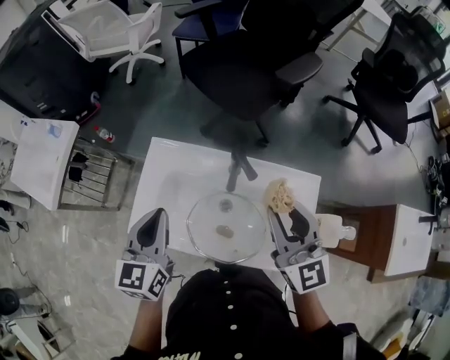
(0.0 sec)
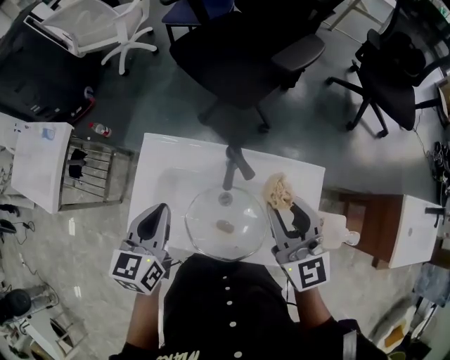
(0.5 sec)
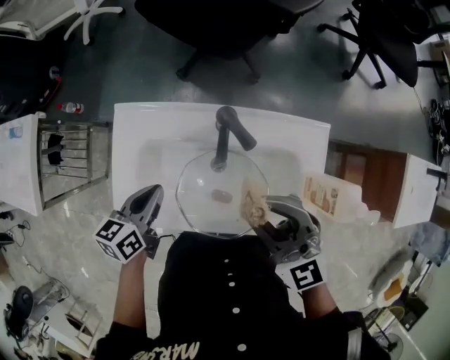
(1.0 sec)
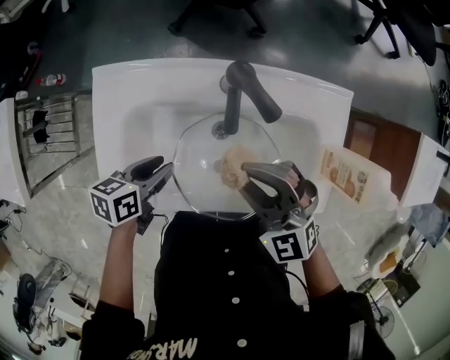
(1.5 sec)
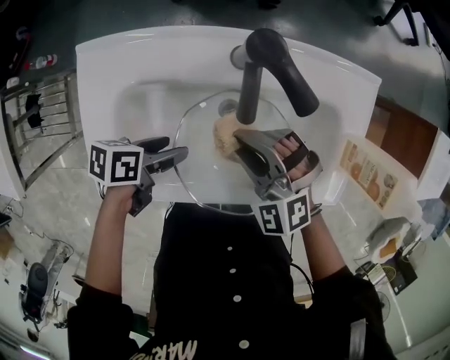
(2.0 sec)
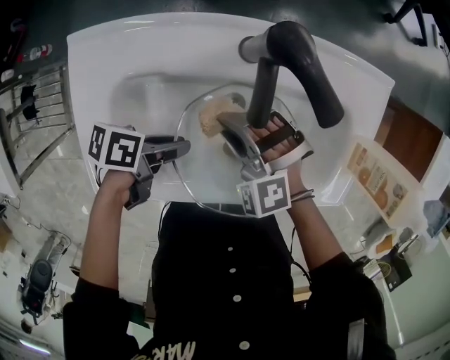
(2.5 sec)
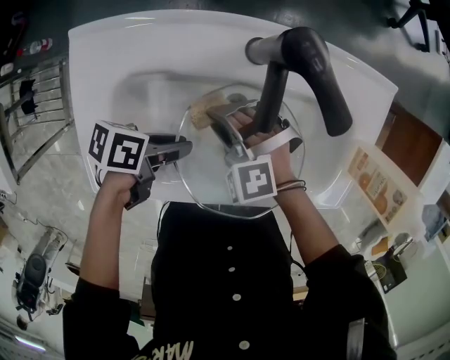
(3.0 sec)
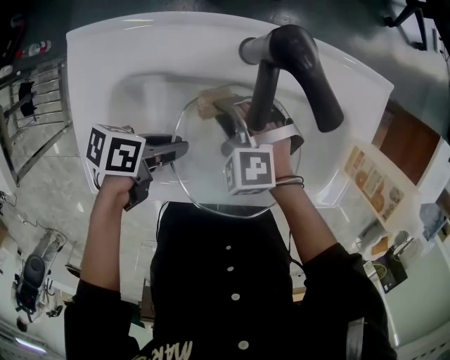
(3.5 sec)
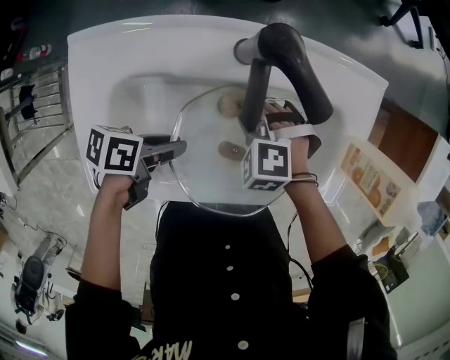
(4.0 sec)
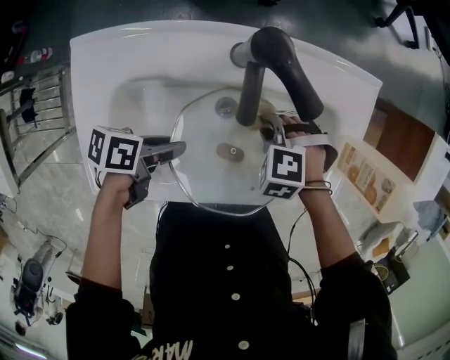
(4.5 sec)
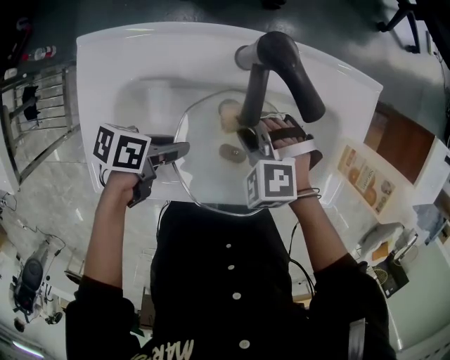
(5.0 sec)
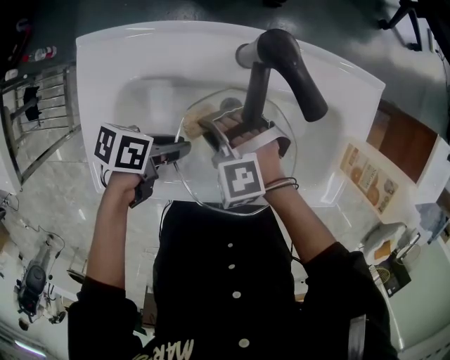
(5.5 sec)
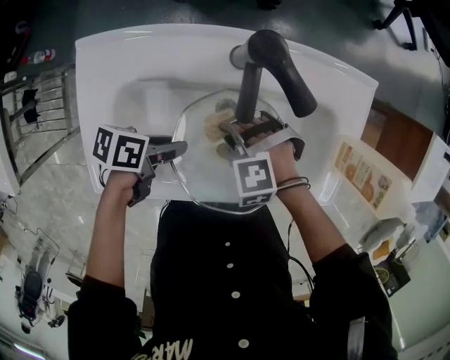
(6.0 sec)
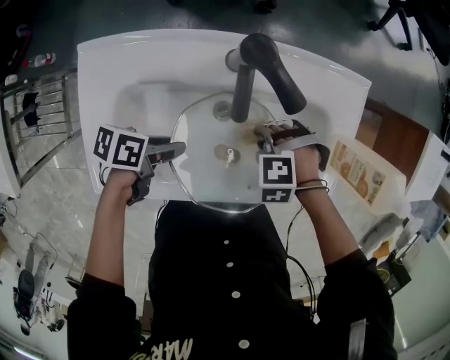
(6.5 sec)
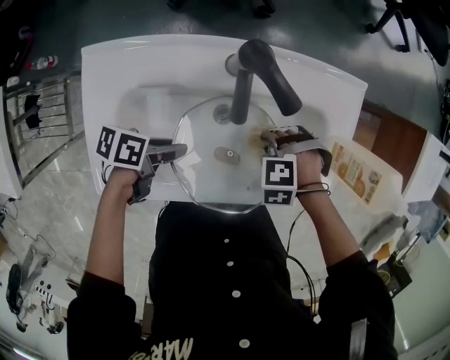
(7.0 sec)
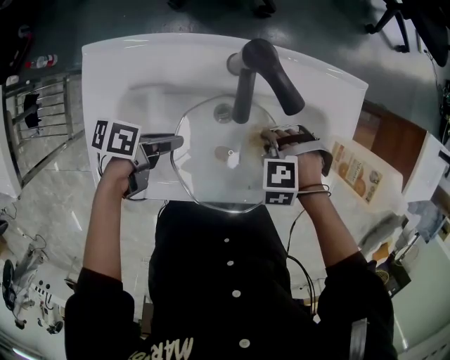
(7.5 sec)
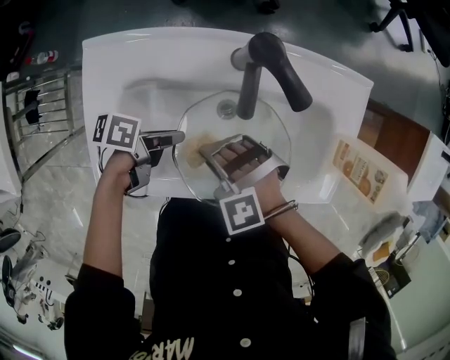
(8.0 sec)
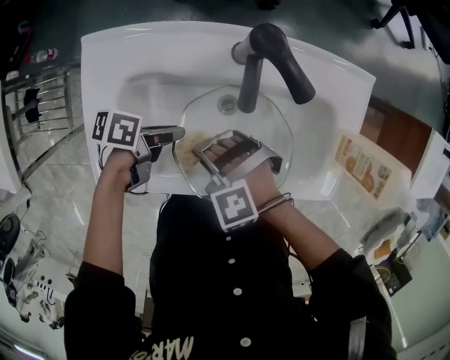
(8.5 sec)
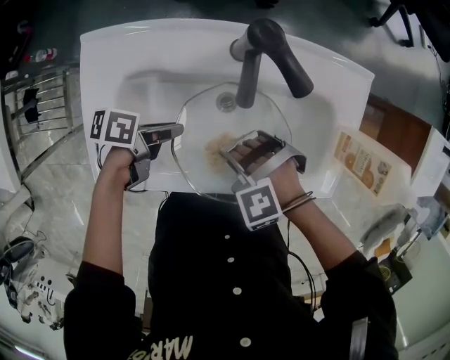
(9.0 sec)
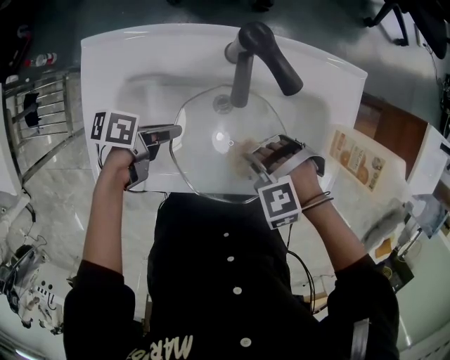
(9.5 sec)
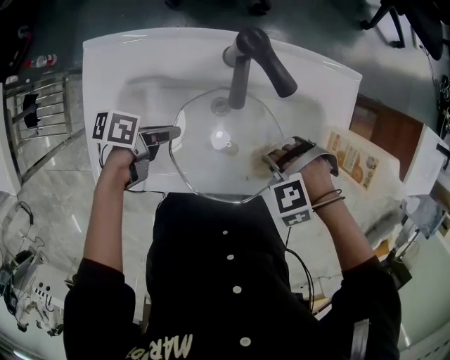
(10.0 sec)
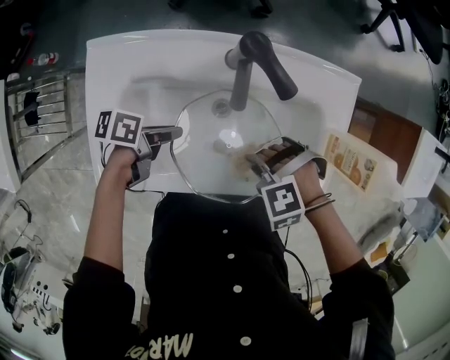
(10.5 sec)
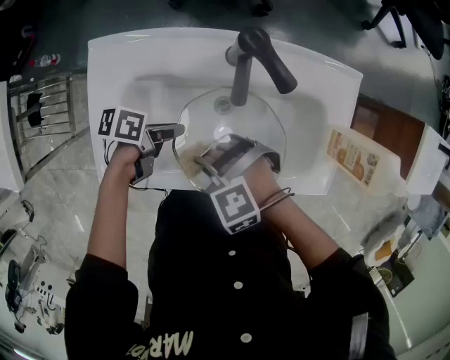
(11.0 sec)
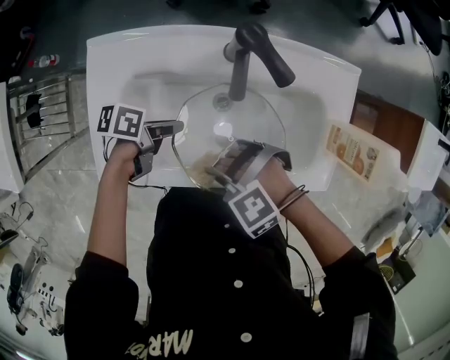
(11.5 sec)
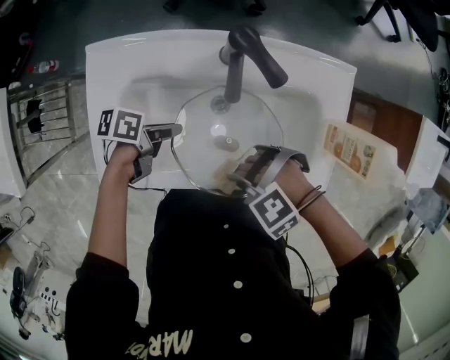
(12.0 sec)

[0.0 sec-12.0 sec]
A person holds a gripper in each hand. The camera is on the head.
0.0 sec to 2.0 sec: The two grippers go about 30 cm downward. The right gripper points its fingers some 40 degrees further downward; the left gripper swivels approximately 80 degrees, and opens up.
2.0 sec to 4.0 sec: The right gripper moves downward, some 10 cm, and changes its angle by roughly 30 degrees; the left gripper closes its fingers.
6.0 sec to 8.0 sec: The right gripper changes place by some 10 cm.
8.0 sec to 10.0 sec: The right gripper ends up approximately 20 cm from where it was, and swivels roughly 40 degrees.
10.0 sec to 12.0 sec: The right gripper turns by roughly 20 degrees.

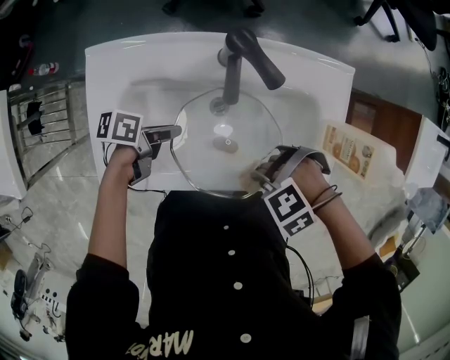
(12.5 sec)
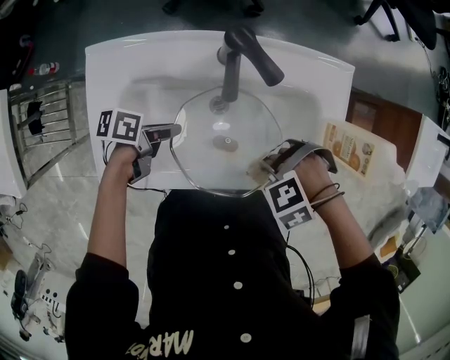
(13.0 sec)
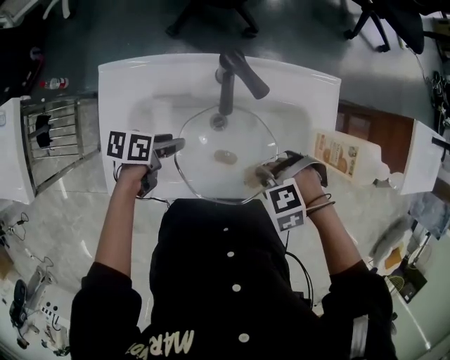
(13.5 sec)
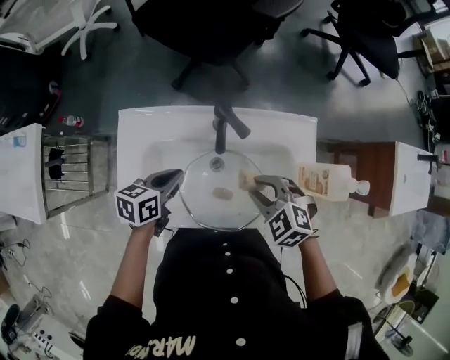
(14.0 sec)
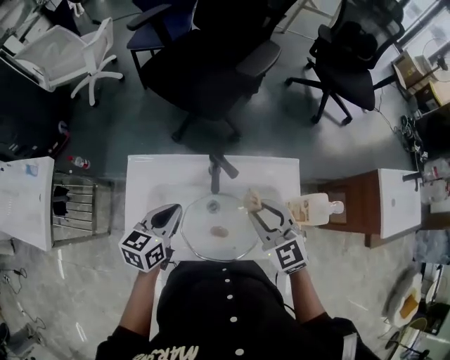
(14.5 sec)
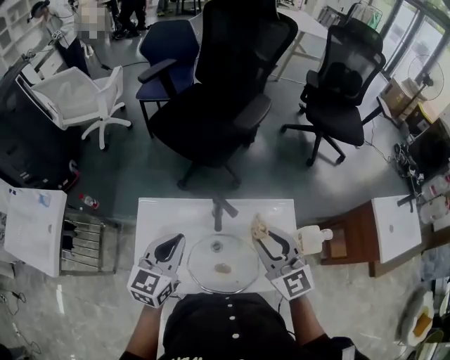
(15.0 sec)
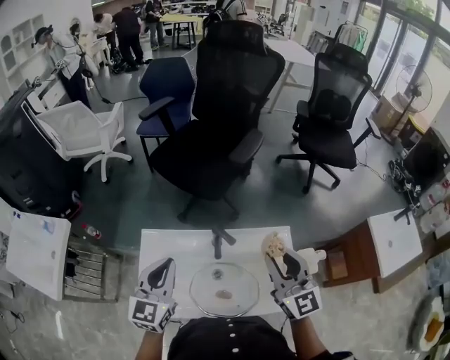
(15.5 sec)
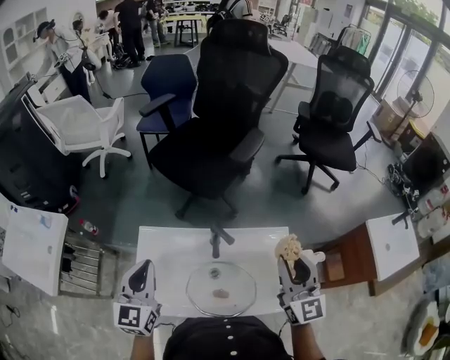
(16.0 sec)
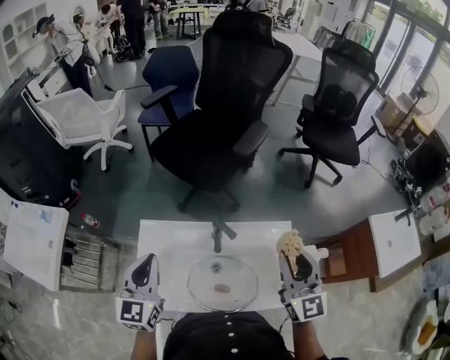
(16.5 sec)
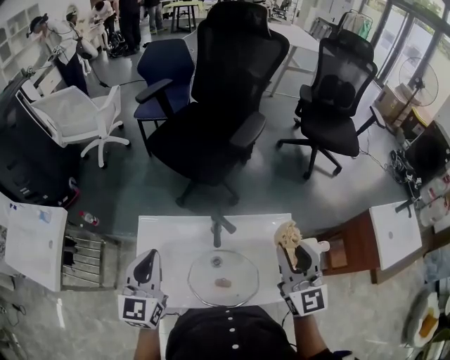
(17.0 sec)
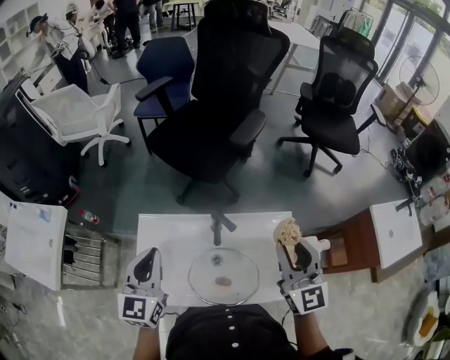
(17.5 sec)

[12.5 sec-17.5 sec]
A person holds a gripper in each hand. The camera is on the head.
12.5 sec to 15.0 sec: Both grippers move upward, about 35 cm. The left gripper rotates roughly 80 degrees, and opens, then closes again, while the right gripper tilts its fingers some 60 degrees upward.
15.0 sec to 17.5 sec: The left gripper moves to the left, roughly 5 cm. Meanwhile the right gripper moves to the right and upward, approximately 10 cm.

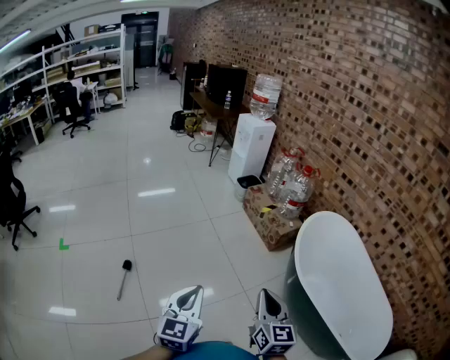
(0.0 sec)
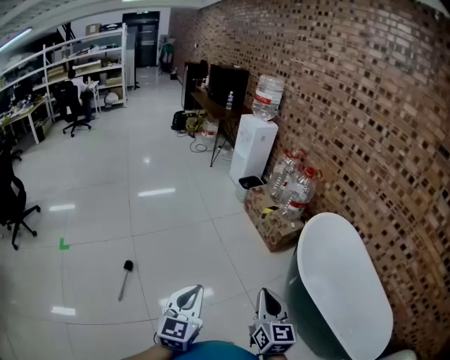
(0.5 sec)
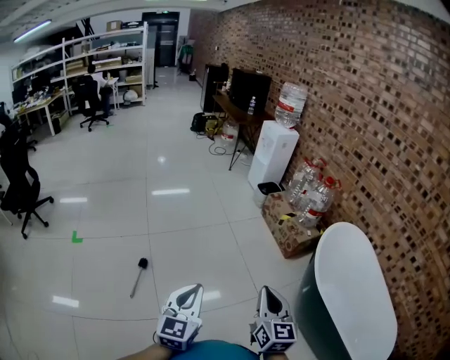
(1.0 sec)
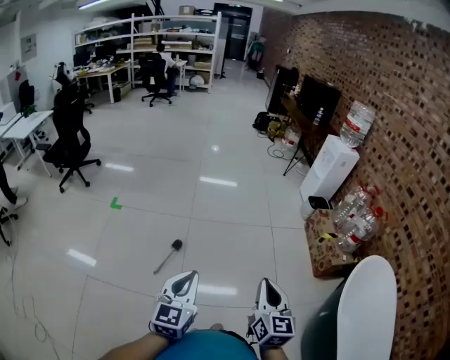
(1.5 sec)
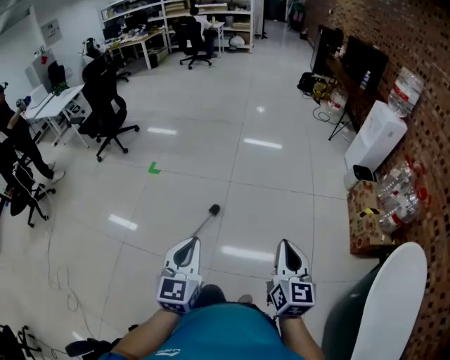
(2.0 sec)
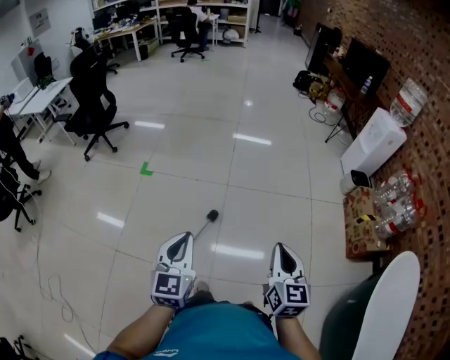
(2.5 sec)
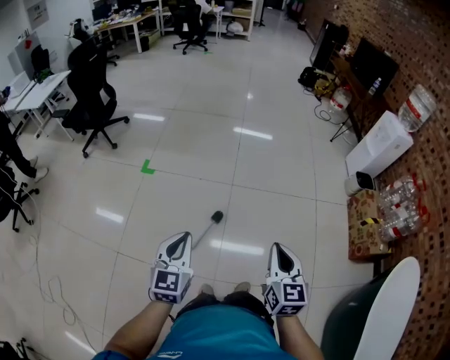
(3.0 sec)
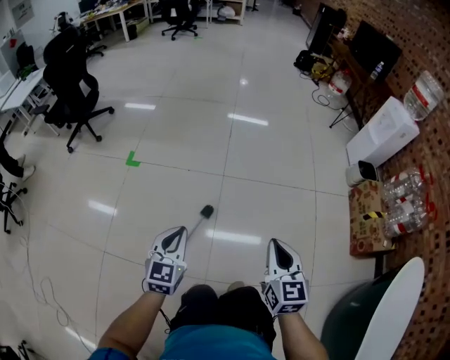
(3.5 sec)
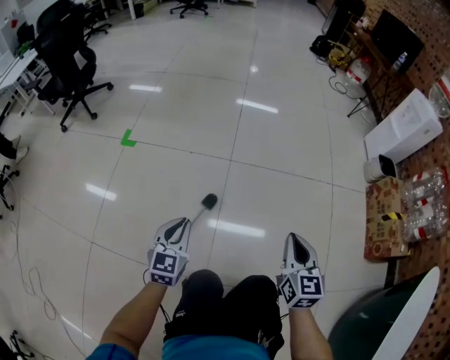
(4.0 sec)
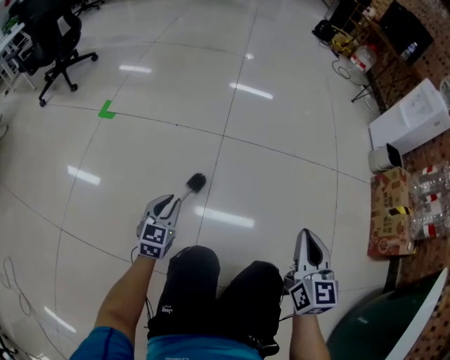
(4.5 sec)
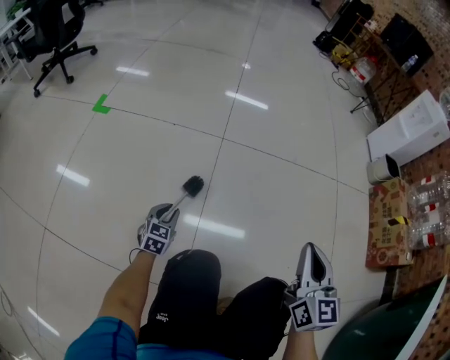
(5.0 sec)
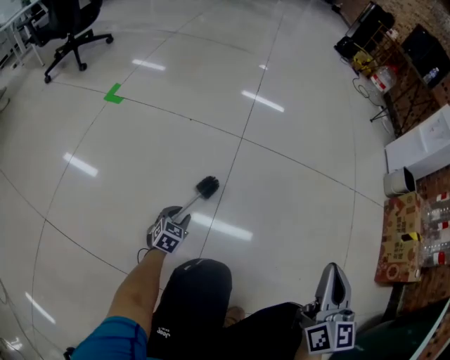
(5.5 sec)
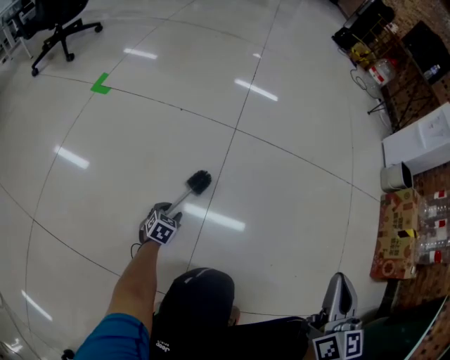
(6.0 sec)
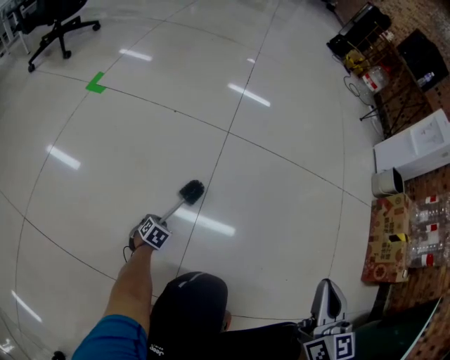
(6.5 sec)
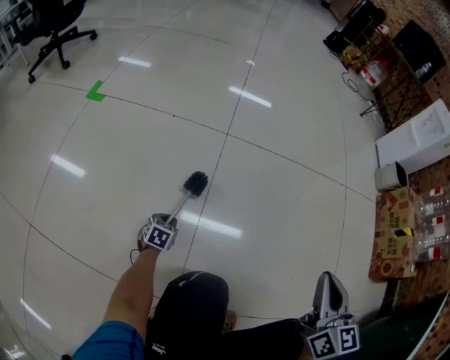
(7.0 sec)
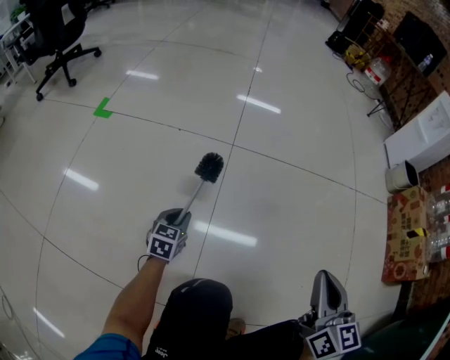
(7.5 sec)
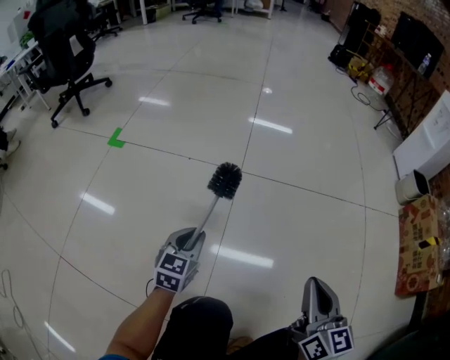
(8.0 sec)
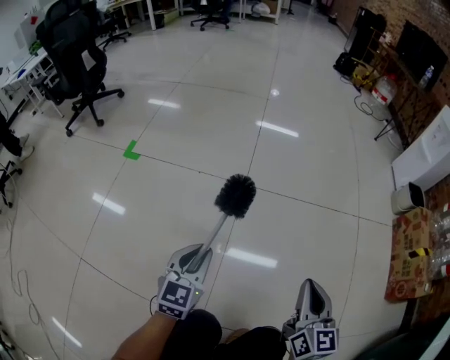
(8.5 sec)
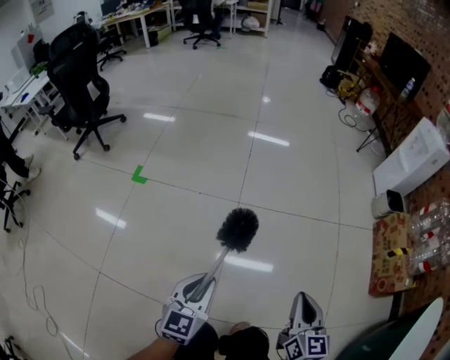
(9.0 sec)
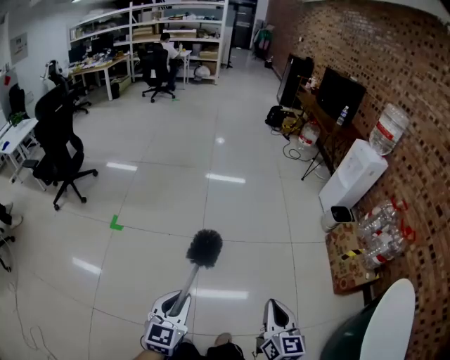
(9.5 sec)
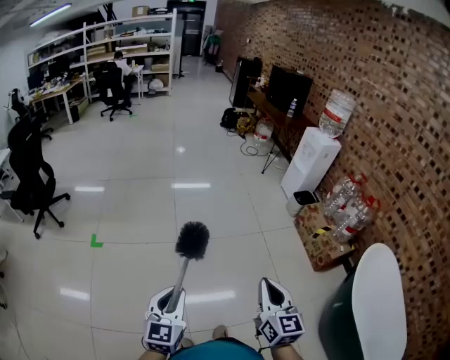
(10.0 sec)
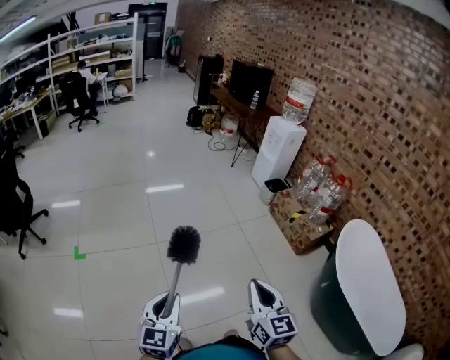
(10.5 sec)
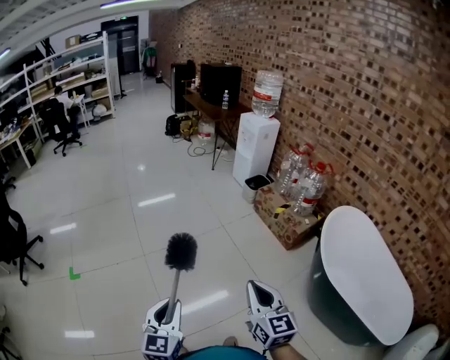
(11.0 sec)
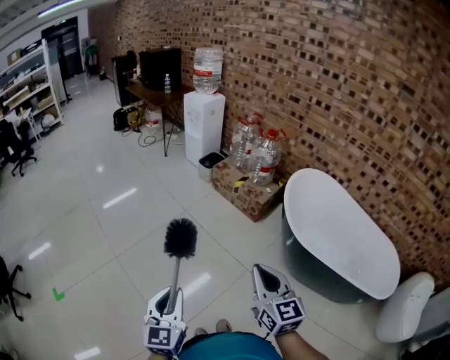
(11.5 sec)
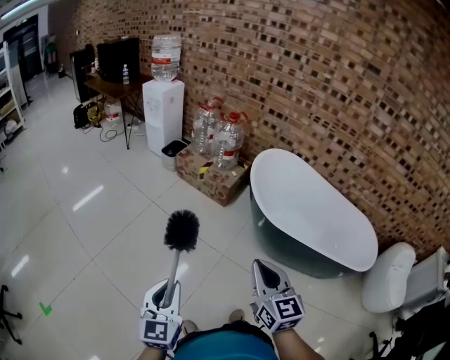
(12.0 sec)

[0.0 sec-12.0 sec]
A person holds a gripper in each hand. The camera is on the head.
0.0 sec to 2.0 sec: The left gripper ends up some 30 cm from where it was, and turns by approximately 40 degrees, while the right gripper ends up about 35 cm from where it was, and changes its angle by roughly 30 degrees.
2.0 sec to 4.0 sec: Both grippers move downward and forward, approximately 50 cm.
4.0 sec to 6.0 sec: The left gripper shifts some 60 cm downward, tilts its fingers approximately 30 degrees downward, and opens up, while the right gripper moves downward, approximately 25 cm.
6.0 sec to 8.0 sec: The right gripper moves approximately 5 cm; the left gripper shifts approximately 25 cm upward, swivels about 30 degrees, and closes.
8.0 sec to 10.0 sec: The two grippers go approximately 70 cm upward. The left gripper rotates approximately 20 degrees. Meanwhile the right gripper rotates approximately 20 degrees.
10.0 sec to 12.0 sec: The right gripper ends up approximately 40 cm from where it was, and swivels about 40 degrees, while the left gripper shifts by some 35 cm, and changes its angle by about 40 degrees.
